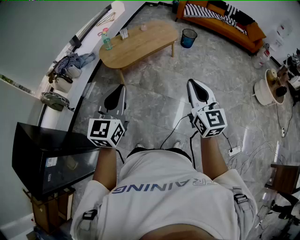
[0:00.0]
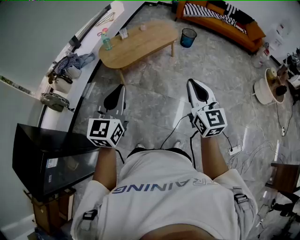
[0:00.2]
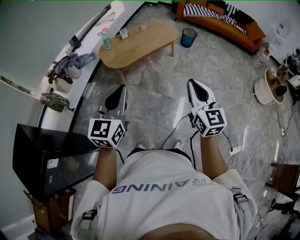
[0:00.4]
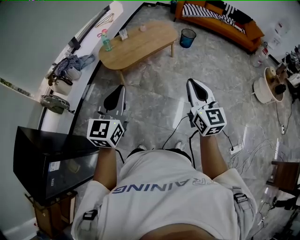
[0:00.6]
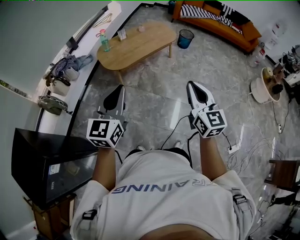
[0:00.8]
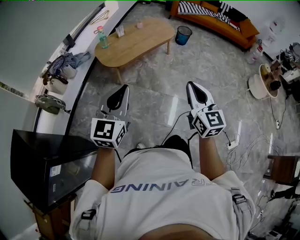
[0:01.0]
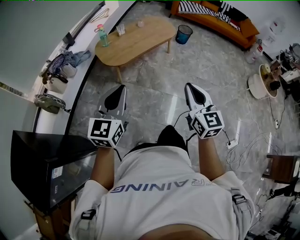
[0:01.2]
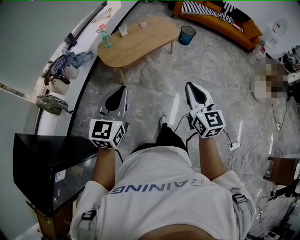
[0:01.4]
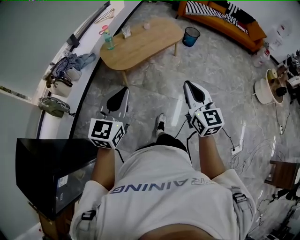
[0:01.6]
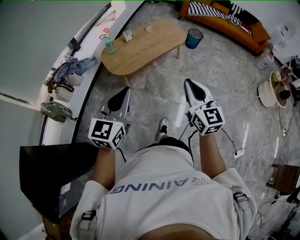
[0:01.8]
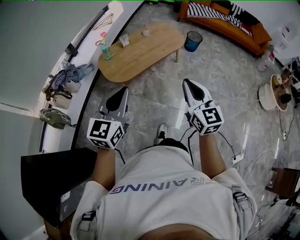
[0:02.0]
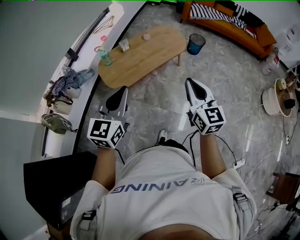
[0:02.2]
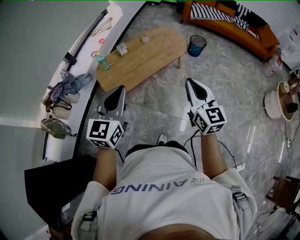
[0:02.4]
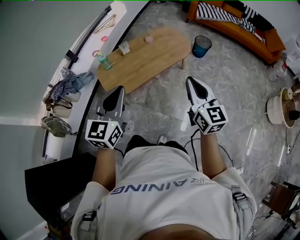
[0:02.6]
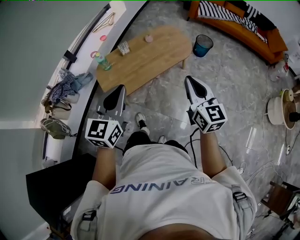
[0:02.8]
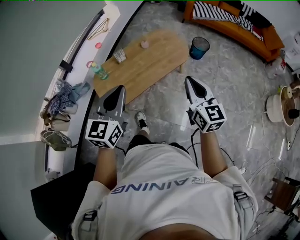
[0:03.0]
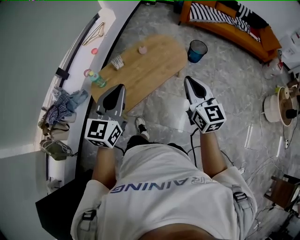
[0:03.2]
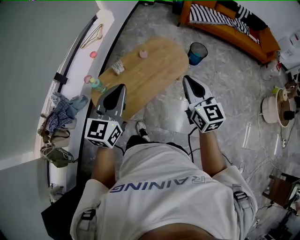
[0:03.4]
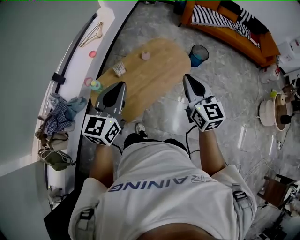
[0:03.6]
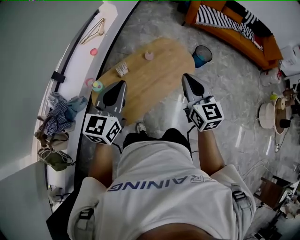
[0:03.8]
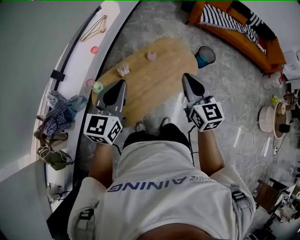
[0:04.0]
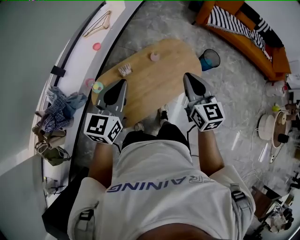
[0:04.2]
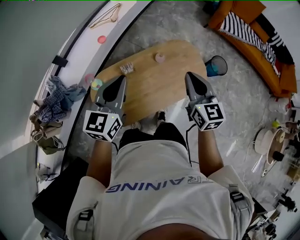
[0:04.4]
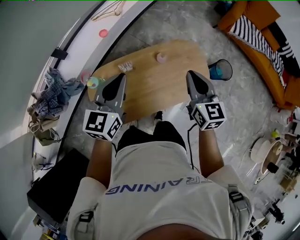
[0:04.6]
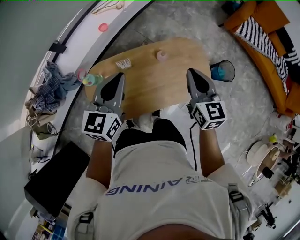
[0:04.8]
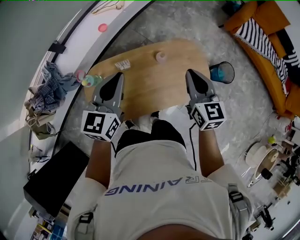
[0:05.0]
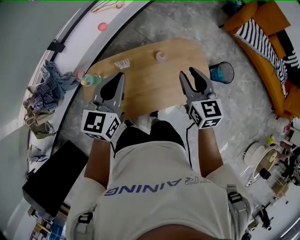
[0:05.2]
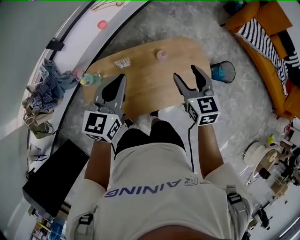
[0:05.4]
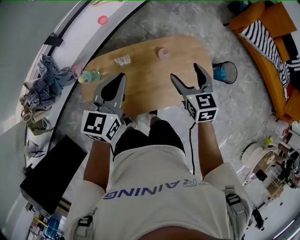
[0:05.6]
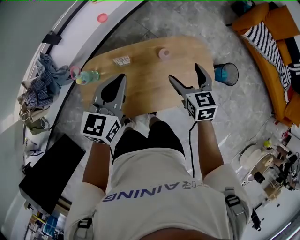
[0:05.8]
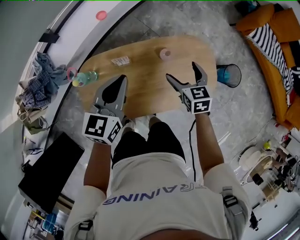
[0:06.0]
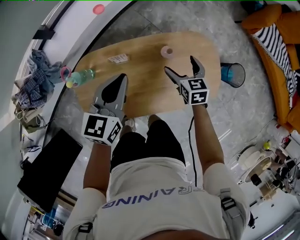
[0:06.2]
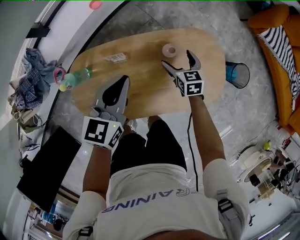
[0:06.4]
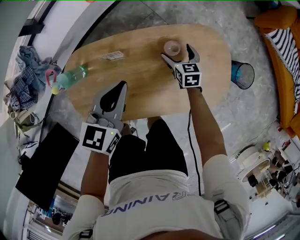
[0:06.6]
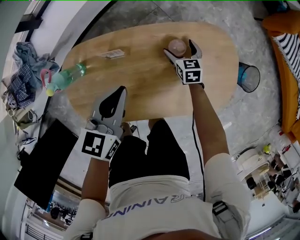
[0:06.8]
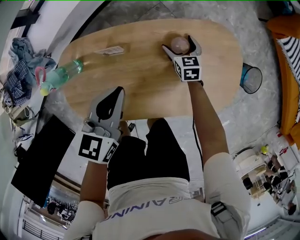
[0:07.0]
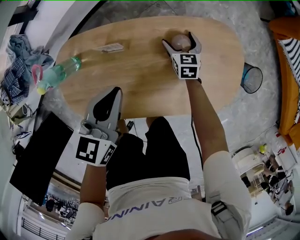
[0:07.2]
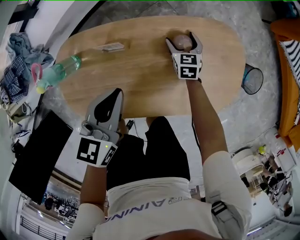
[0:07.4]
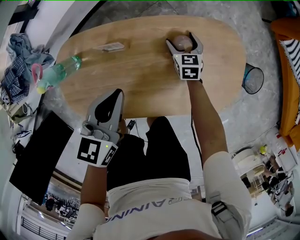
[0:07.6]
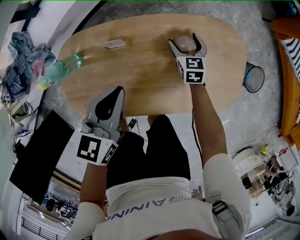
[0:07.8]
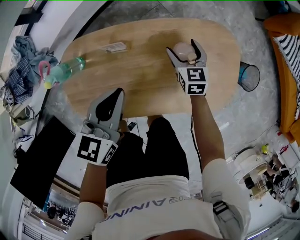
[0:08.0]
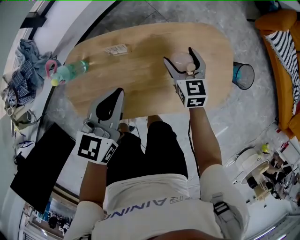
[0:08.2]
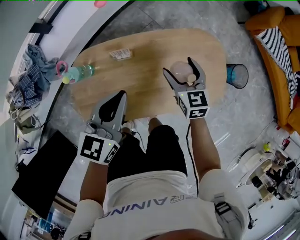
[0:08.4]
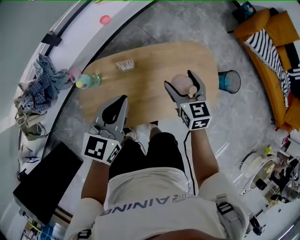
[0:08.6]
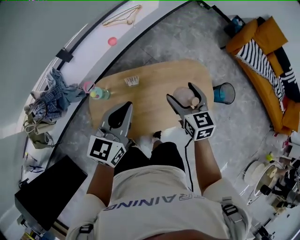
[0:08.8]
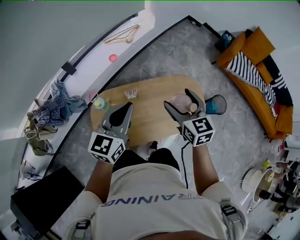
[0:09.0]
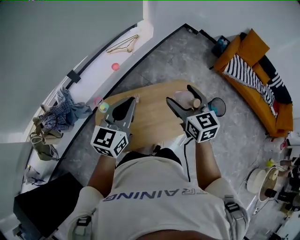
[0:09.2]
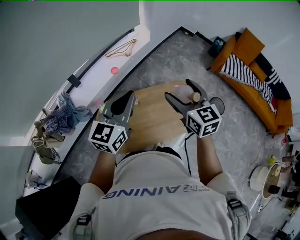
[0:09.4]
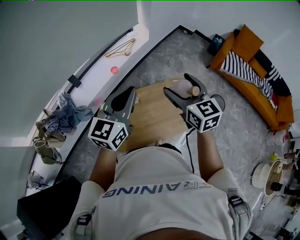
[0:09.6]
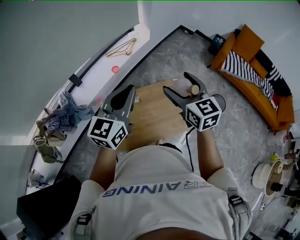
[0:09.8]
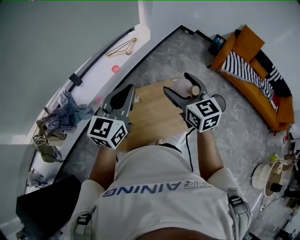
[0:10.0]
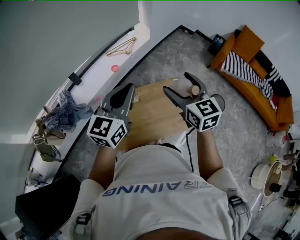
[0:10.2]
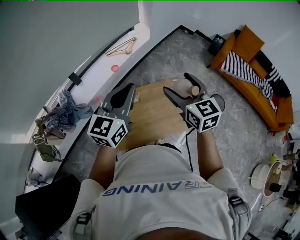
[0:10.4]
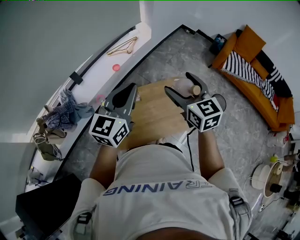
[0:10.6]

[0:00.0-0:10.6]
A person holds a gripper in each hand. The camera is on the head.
0:00.0 to 0:01.6: The grippers both shift to the left and forward by some 10 cm.
0:01.6 to 0:03.0: Both grippers are carried forward, approximately 40 cm.
0:03.0 to 0:04.6: The two grippers travel together, forward, some 40 cm.
0:04.6 to 0:06.0: The right gripper is displaced downward and forward by some 25 cm, rotates some 30 degrees, and opens up; the left gripper shifts roughly 15 cm downward and forward.
0:06.0 to 0:07.6: The left gripper travels downward by roughly 20 cm; the right gripper is displaced downward by approximately 30 cm.
0:07.6 to 0:09.0: The left gripper is displaced upward by roughly 35 cm, and swivels some 30 degrees, while the right gripper is displaced upward by roughly 60 cm, and rotates roughly 20 degrees.
0:09.0 to 0:10.6: Both grippers travel together upward, about 10 cm.

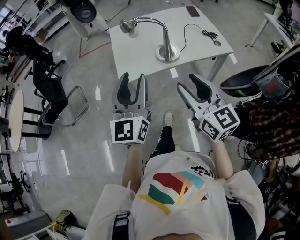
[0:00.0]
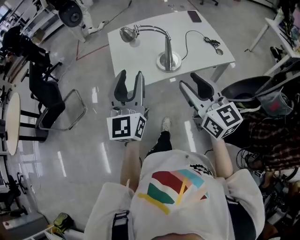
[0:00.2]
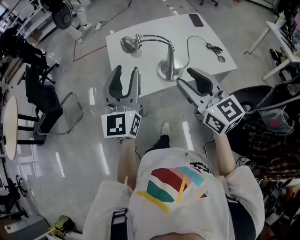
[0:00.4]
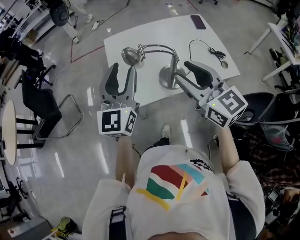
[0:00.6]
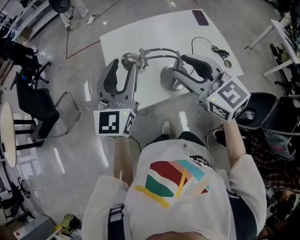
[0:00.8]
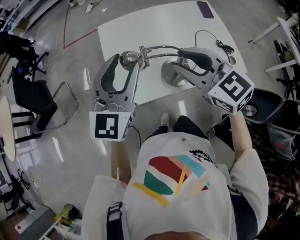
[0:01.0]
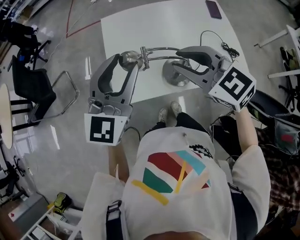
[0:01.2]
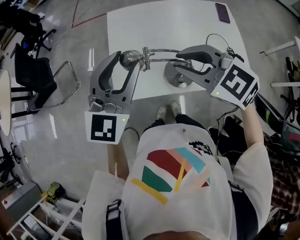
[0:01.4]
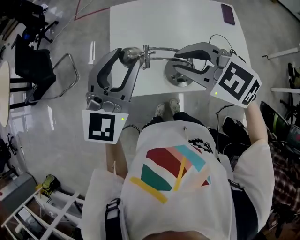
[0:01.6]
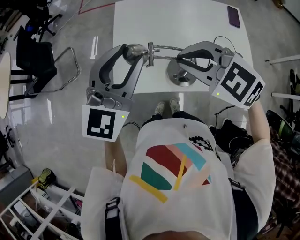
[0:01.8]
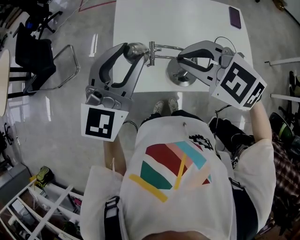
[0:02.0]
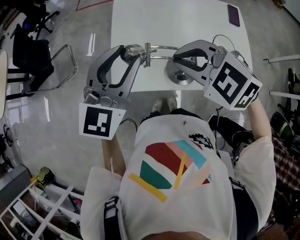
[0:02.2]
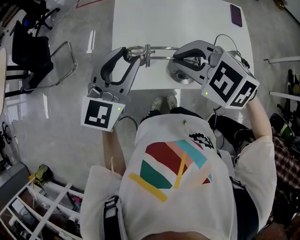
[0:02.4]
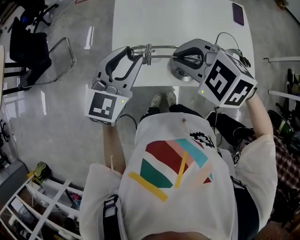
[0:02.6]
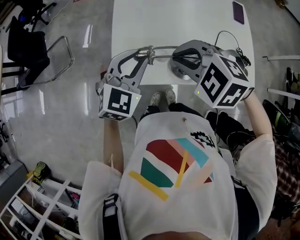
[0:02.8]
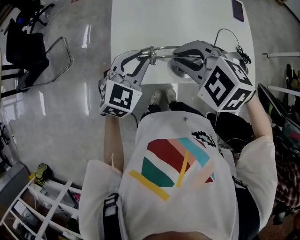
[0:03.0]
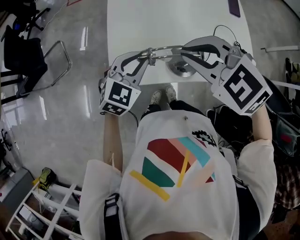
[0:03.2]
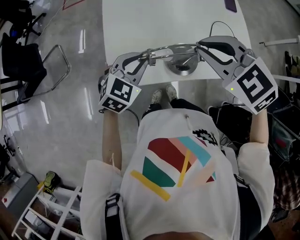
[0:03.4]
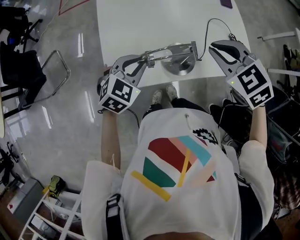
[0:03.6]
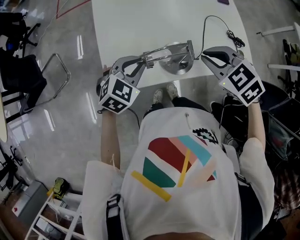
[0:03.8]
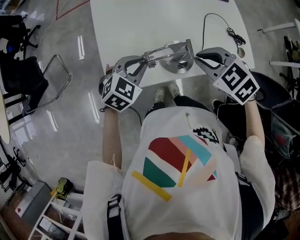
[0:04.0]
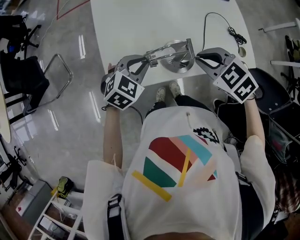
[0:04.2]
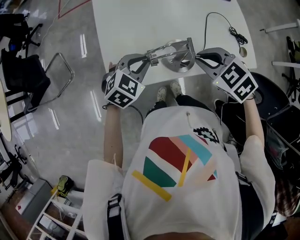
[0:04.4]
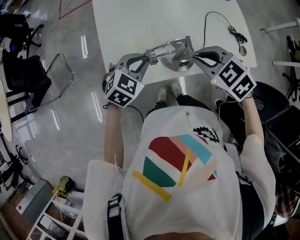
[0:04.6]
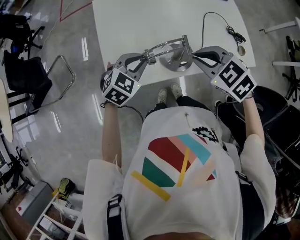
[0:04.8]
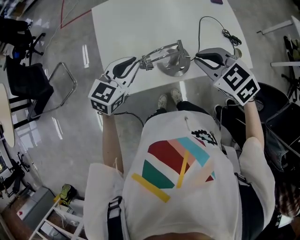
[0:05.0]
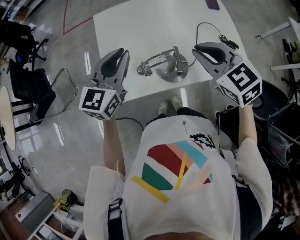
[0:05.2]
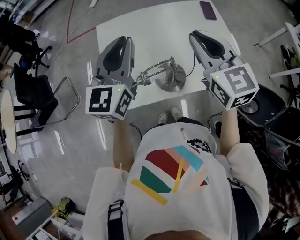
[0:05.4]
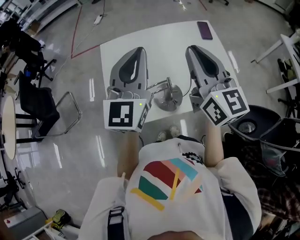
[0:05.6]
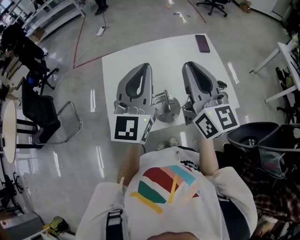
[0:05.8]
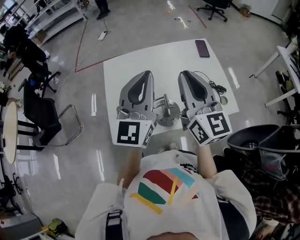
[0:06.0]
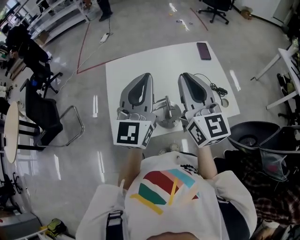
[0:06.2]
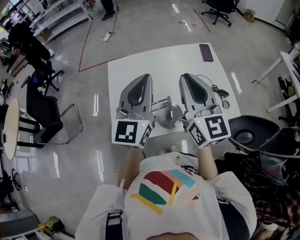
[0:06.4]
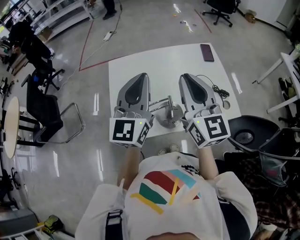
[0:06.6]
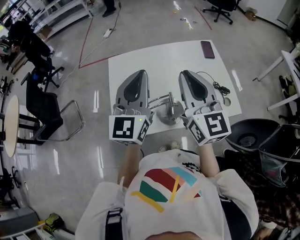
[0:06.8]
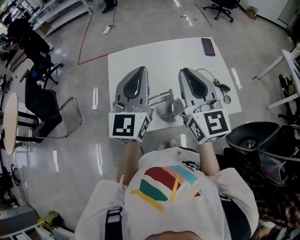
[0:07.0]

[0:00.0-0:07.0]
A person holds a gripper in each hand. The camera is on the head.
0:00.0 to 0:01.4: The two grippers go approximately 30 cm forward. The right gripper points its fingers roughly 30 degrees further downward, and closes its fingers.
0:01.4 to 0:02.8: The left gripper shifts roughly 15 cm downward, and rotates roughly 30 degrees. The right gripper shifts approximately 5 cm downward, and turns by about 30 degrees.
0:02.8 to 0:04.2: The right gripper travels to the right and downward by about 15 cm, and rotates some 30 degrees, while the left gripper heads downward, covering some 10 cm, and changes its angle by some 30 degrees.
0:04.2 to 0:05.6: Both grippers move upward, roughly 25 cm. The left gripper tips its fingers upward by approximately 50 degrees. The right gripper angles its fingers upward, by some 60 degrees.
0:05.6 to 0:07.0: The grippers stay close to where they were, moving slightly.

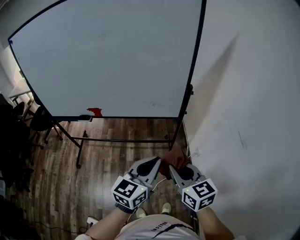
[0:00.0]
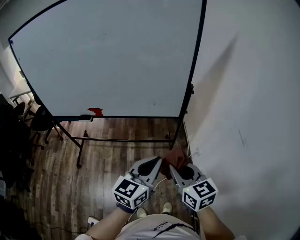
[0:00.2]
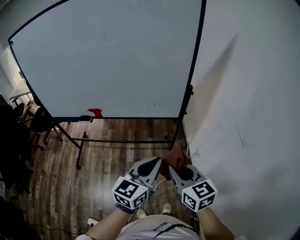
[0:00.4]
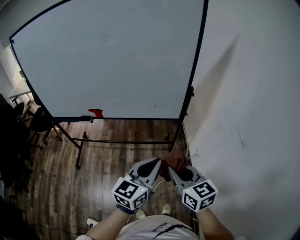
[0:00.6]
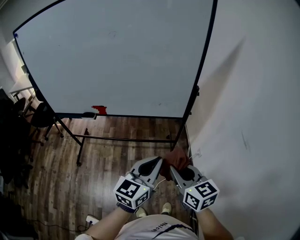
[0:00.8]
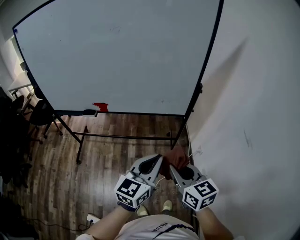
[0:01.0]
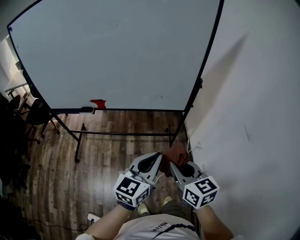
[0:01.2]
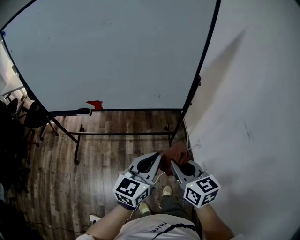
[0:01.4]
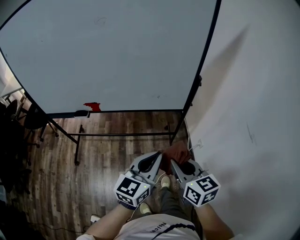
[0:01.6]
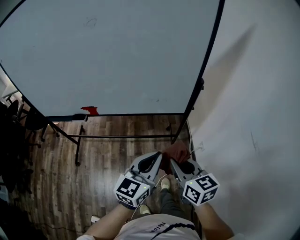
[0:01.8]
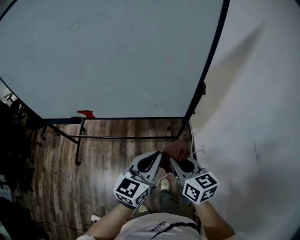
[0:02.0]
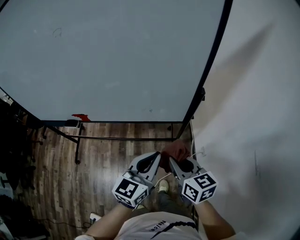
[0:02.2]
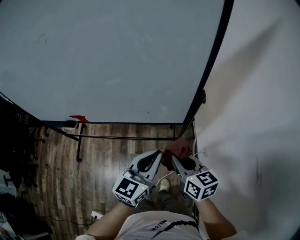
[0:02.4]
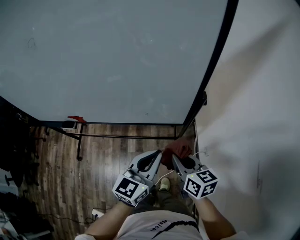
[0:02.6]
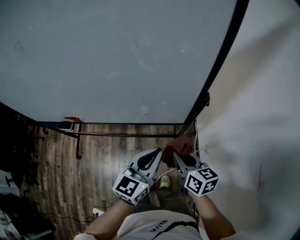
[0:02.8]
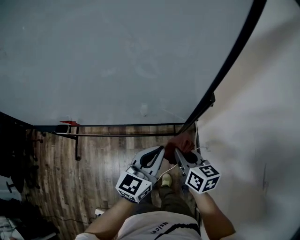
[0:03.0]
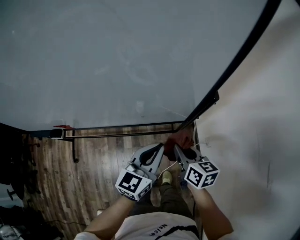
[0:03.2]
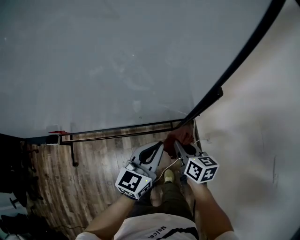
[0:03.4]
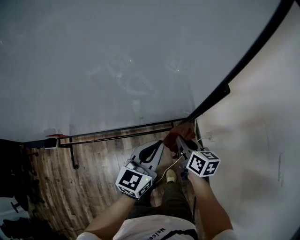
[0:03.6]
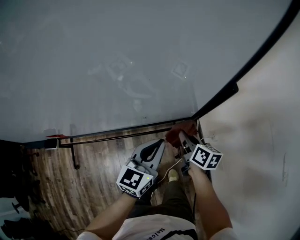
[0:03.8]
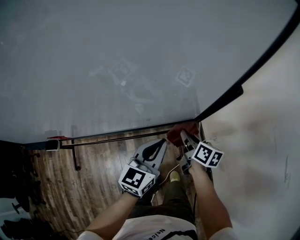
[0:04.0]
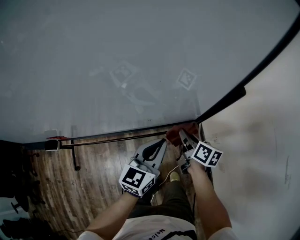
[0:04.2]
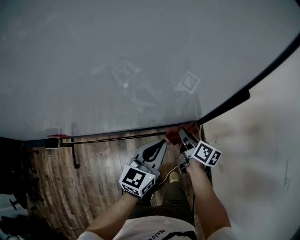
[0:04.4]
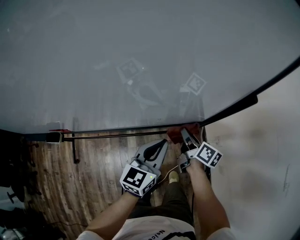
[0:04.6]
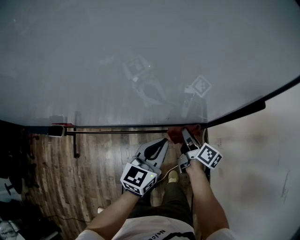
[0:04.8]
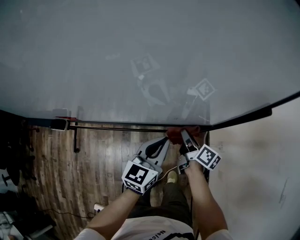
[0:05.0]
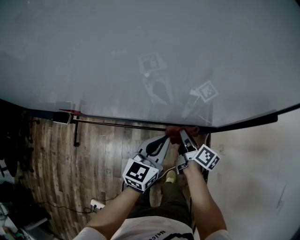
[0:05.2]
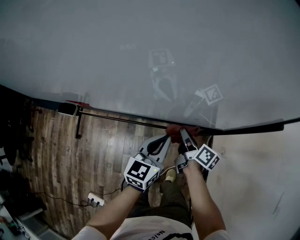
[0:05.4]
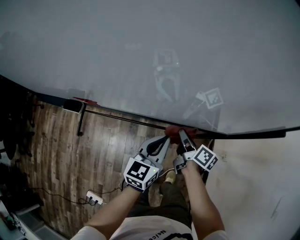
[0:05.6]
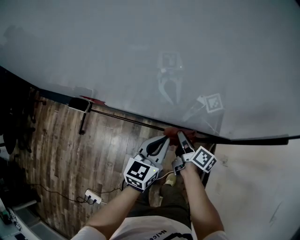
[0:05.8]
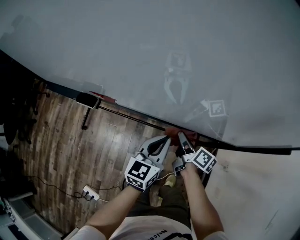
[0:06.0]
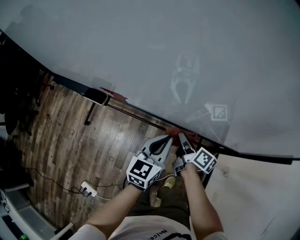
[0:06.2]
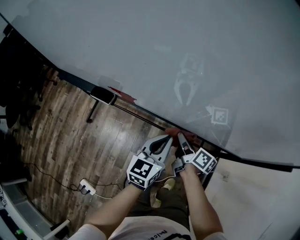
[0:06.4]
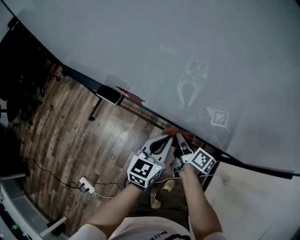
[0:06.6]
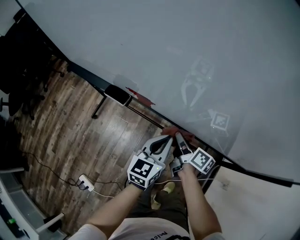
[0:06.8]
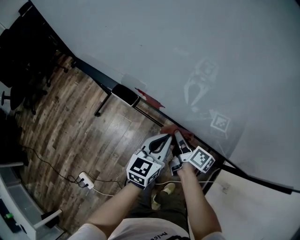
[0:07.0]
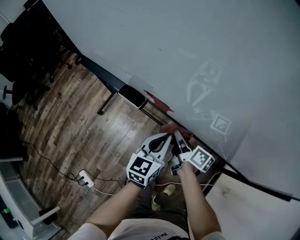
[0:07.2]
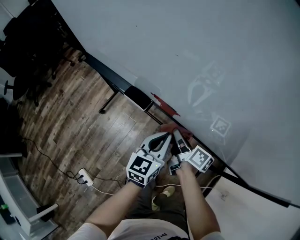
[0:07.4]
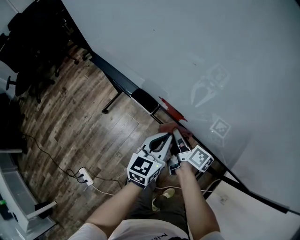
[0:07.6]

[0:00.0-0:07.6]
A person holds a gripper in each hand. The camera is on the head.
0:00.0 to 0:01.6: The right gripper shifts by about 5 cm. Meanwhile the left gripper is displaced to the left by about 5 cm.
0:01.6 to 0:03.0: The left gripper shifts approximately 25 cm forward. Meanwhile the right gripper goes some 30 cm forward and downward.
0:03.0 to 0:04.6: The left gripper goes some 15 cm downward and forward; the right gripper moves downward and forward, approximately 20 cm, and turns by some 40 degrees.
0:04.6 to 0:06.0: Both grippers move to the left, about 20 cm. The right gripper swivels about 20 degrees, while the left gripper swivels about 20 degrees.
0:06.0 to 0:07.6: The grippers both shift to the left by some 25 cm. The left gripper swivels some 20 degrees. The right gripper rotates approximately 20 degrees.
